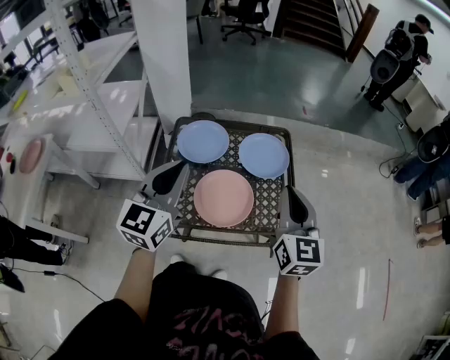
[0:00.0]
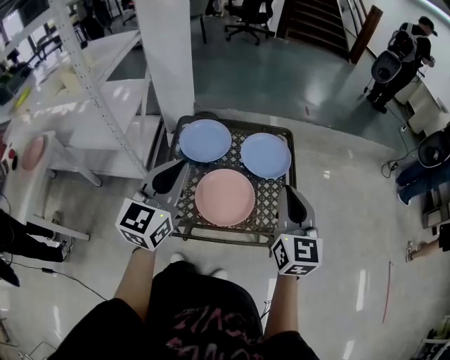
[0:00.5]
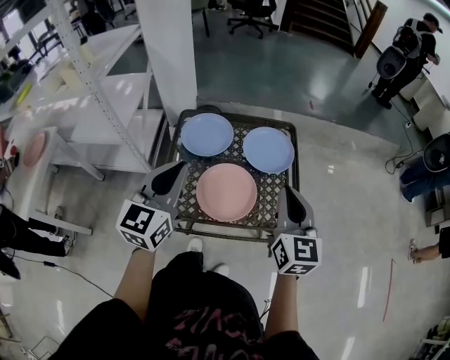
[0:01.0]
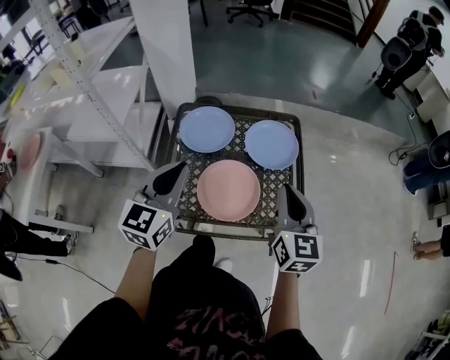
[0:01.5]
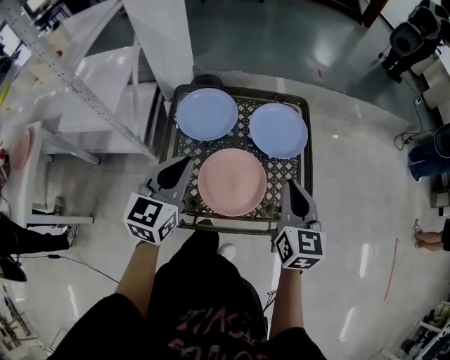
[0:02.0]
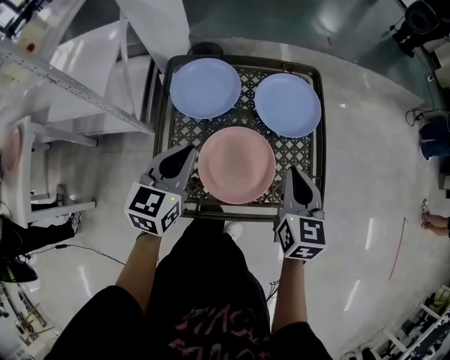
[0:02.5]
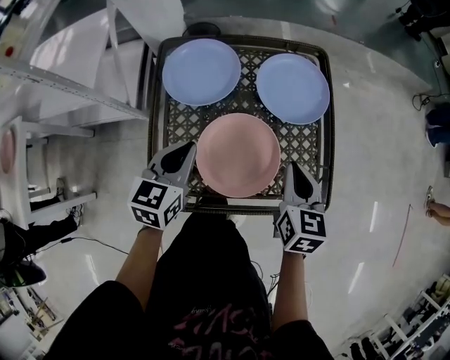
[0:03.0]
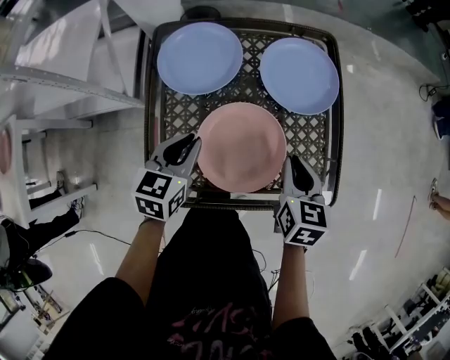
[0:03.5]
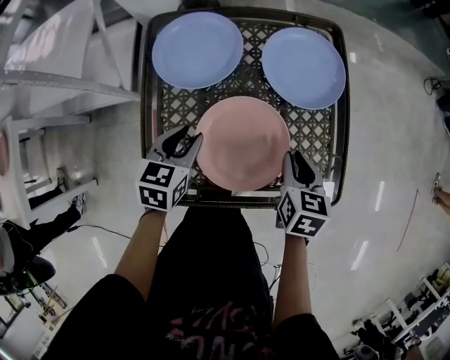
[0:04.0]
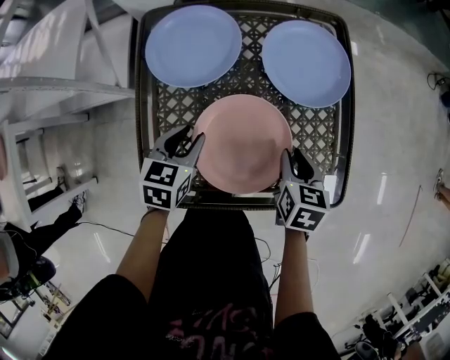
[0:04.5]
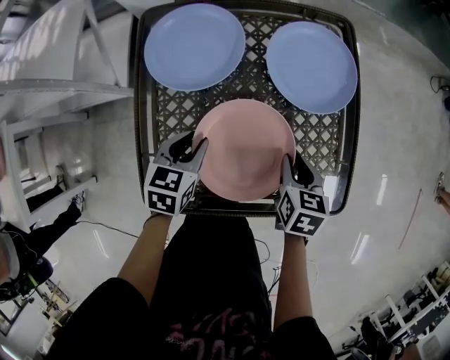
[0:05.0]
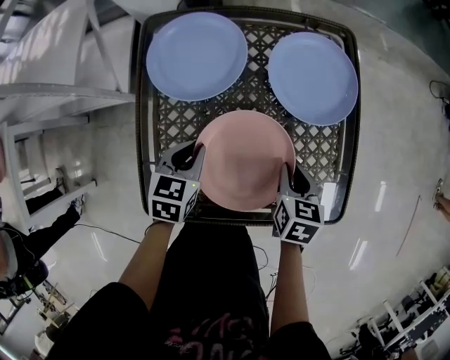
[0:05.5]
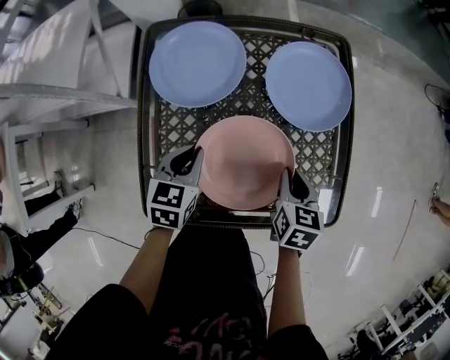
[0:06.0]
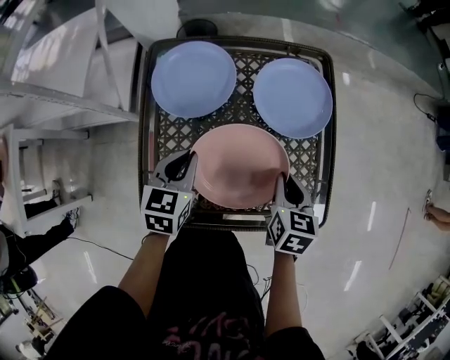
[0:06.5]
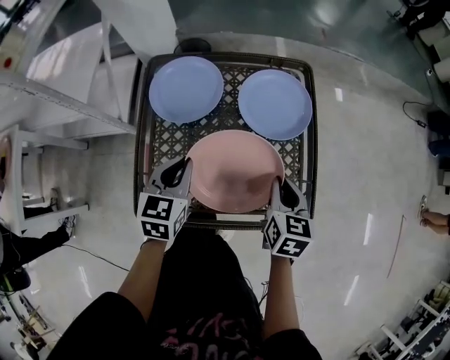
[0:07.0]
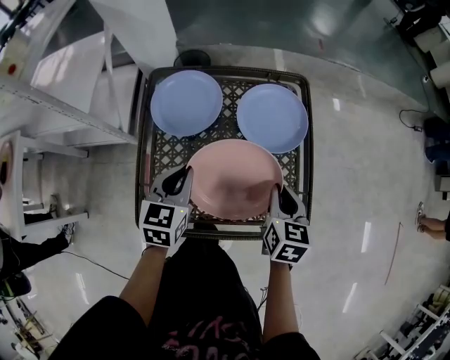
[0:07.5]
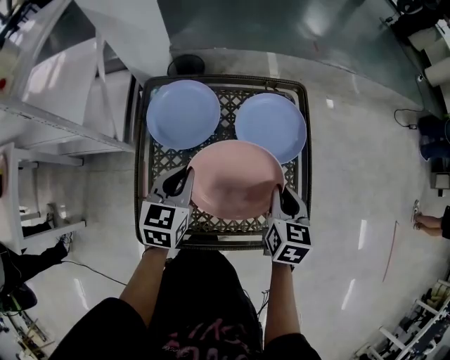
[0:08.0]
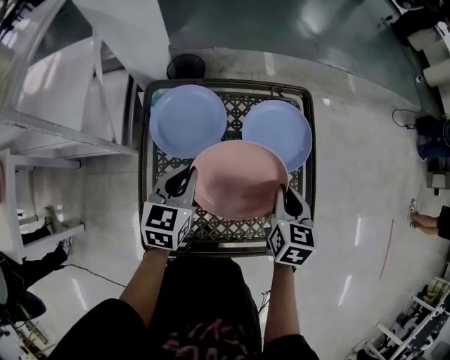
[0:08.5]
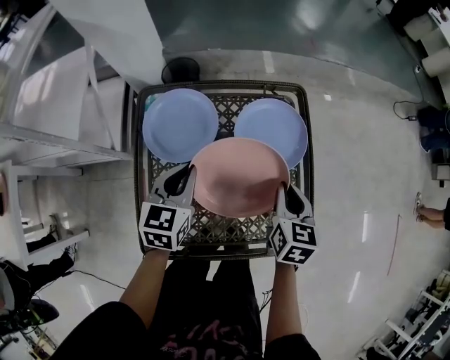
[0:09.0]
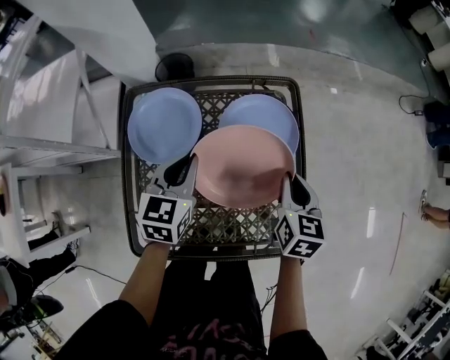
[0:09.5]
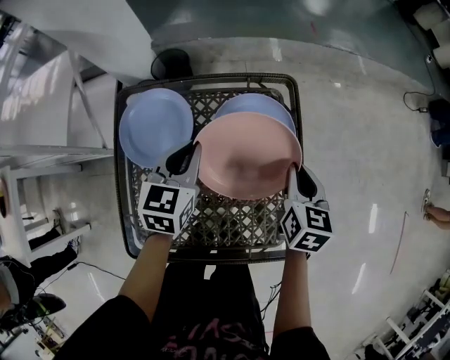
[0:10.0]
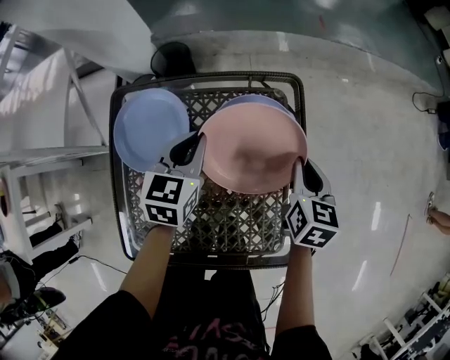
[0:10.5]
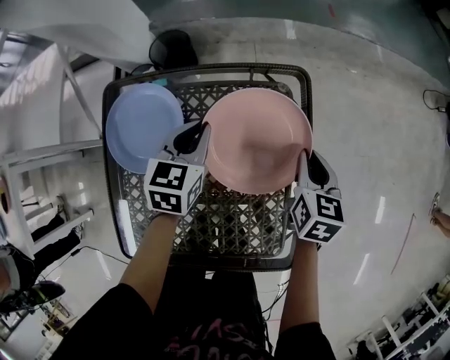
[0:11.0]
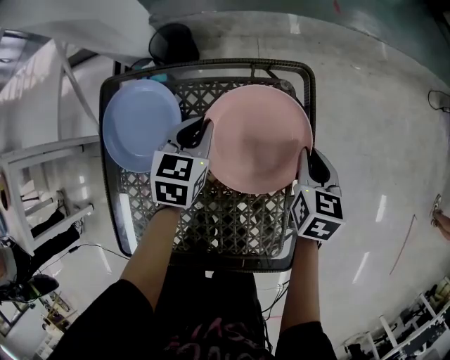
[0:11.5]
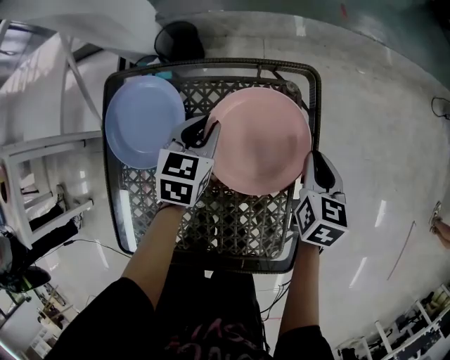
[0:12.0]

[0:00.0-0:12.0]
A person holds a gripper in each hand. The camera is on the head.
0:00.0 to 0:02.0: Both grippers move downward and forward, approximately 15 cm.
0:02.0 to 0:04.0: Both grippers travel together downward, roughly 25 cm. The left gripper rotates approximately 30 degrees, and opens, while the right gripper rotates some 30 degrees.
0:04.0 to 0:06.0: The left gripper closes its fingers.
0:06.0 to 0:08.0: Both grippers travel together upward, approximately 10 cm.
0:08.0 to 0:10.0: The two grippers go roughly 15 cm forward and to the right.
0:10.0 to 0:12.0: The right gripper goes approximately 10 cm forward and downward. Meanwhile the left gripper moves downward and forward, some 15 cm.

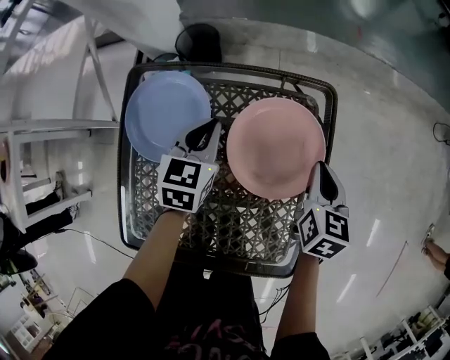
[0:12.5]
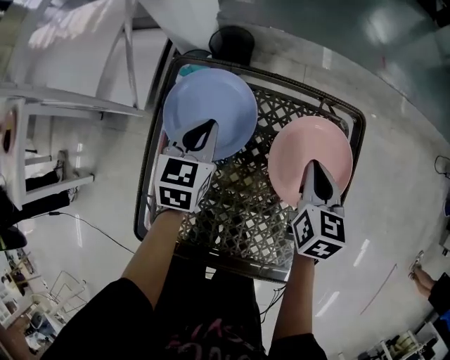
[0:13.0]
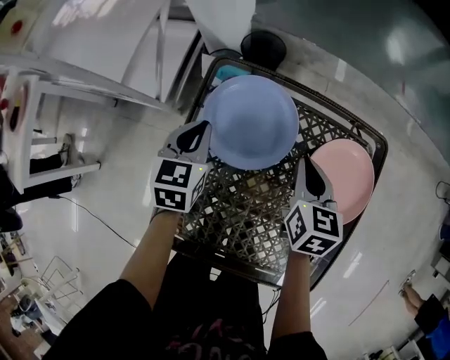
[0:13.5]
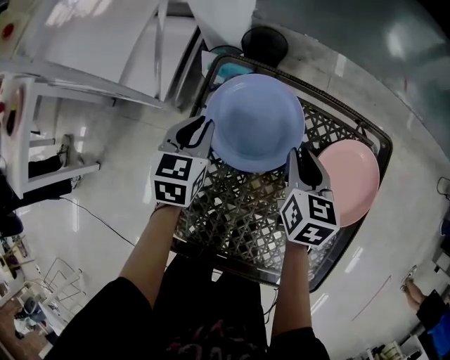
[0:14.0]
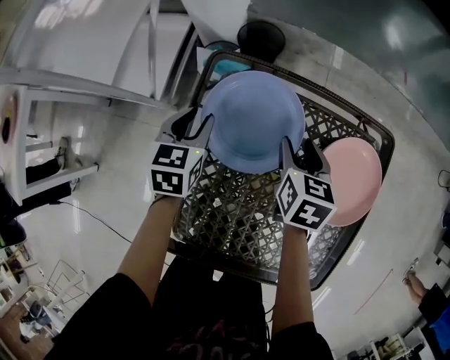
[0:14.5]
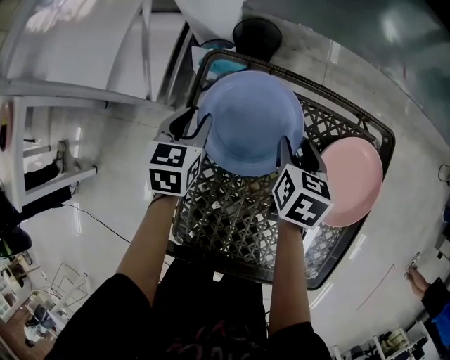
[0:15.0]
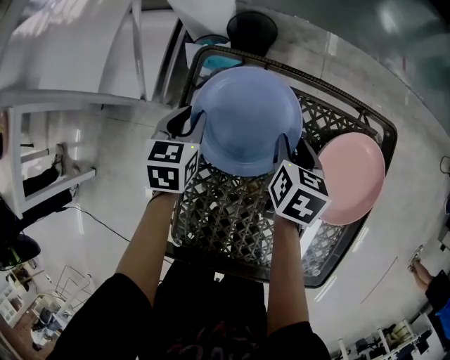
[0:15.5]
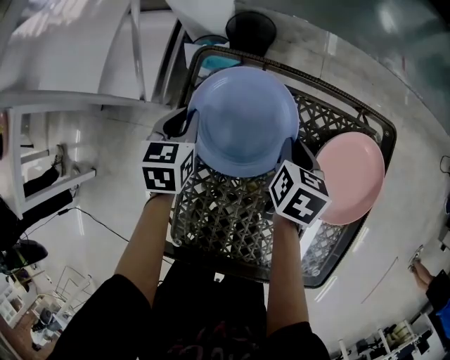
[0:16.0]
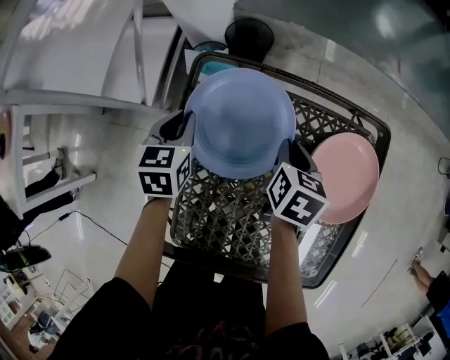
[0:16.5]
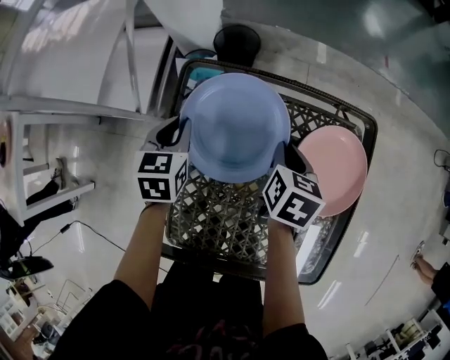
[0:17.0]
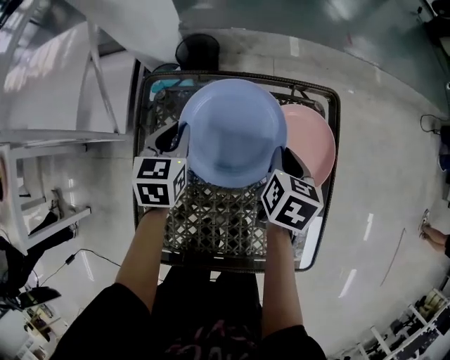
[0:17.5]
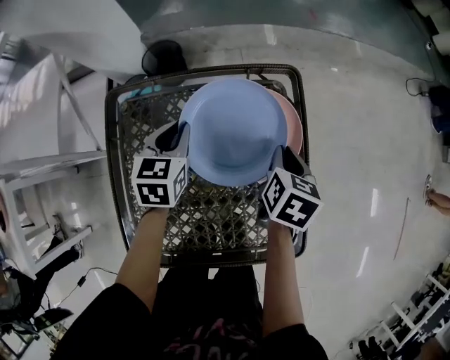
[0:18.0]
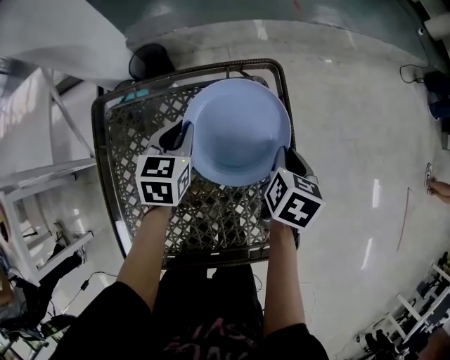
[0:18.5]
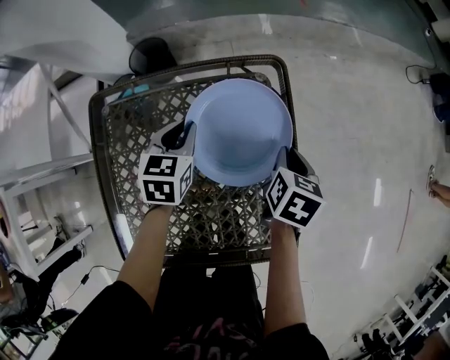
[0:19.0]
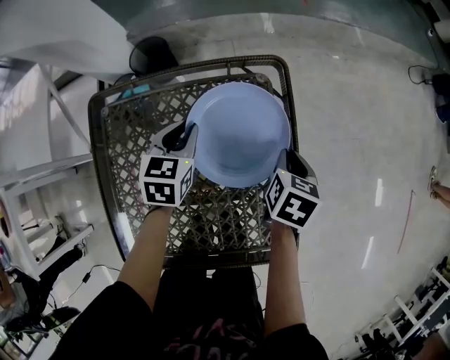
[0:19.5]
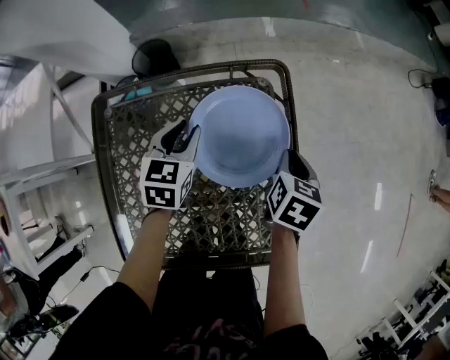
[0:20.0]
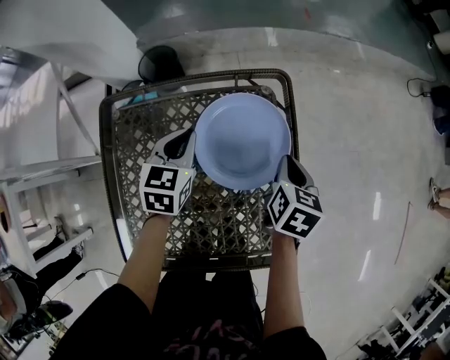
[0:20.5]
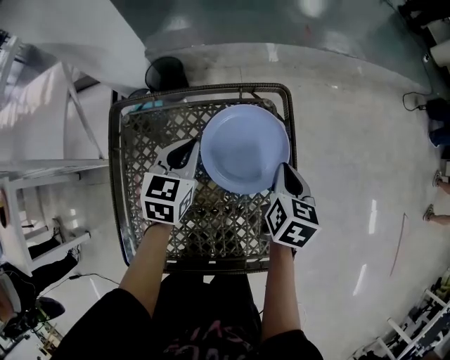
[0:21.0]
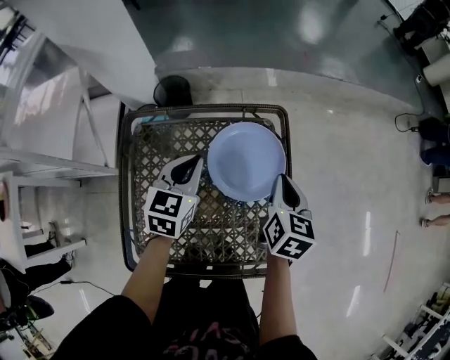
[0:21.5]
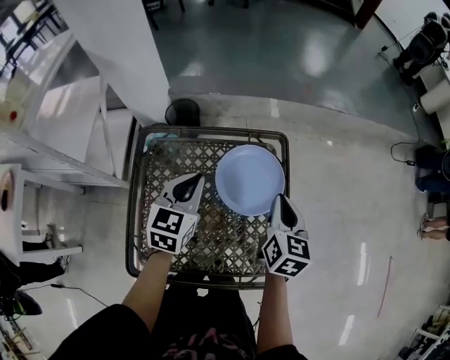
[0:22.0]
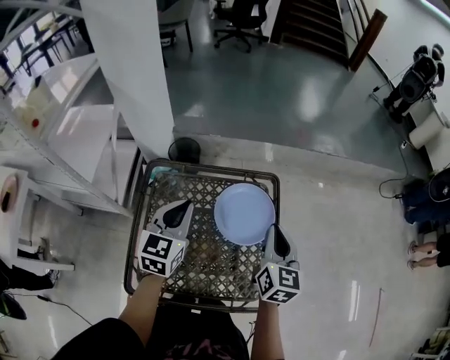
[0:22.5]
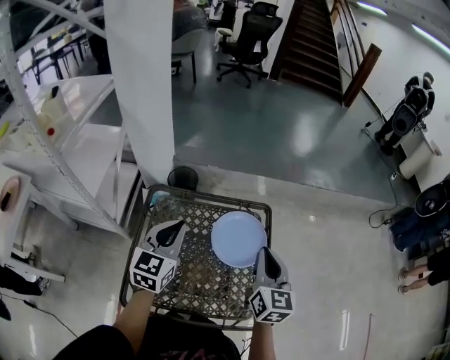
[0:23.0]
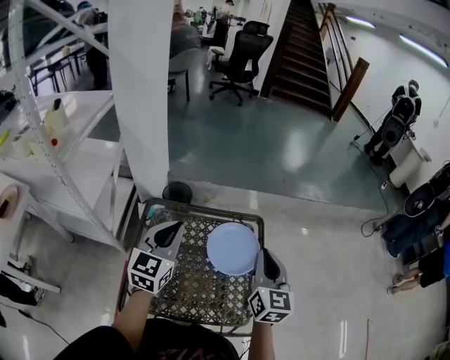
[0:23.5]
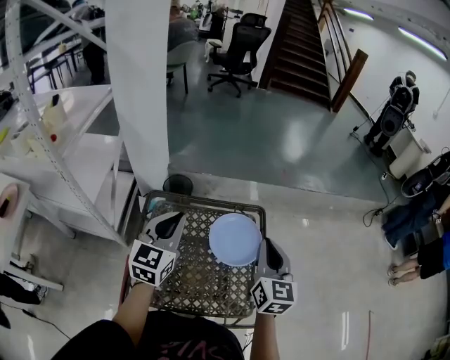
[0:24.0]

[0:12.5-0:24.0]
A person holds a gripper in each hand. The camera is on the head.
0:12.5 to 0:14.5: The two grippers go roughly 30 cm to the left. The left gripper opens. Meanwhile the right gripper opens its fingers.
0:14.5 to 0:16.5: The right gripper closes. The left gripper closes.
0:16.5 to 0:18.5: The right gripper ends up approximately 30 cm from where it was, and changes its angle by approximately 20 degrees. The left gripper ends up some 30 cm from where it was, and swivels approximately 20 degrees.
0:18.5 to 0:20.0: The grippers move only a little.
0:20.0 to 0:22.0: The right gripper heads upward, covering roughly 15 cm, and changes its angle by about 30 degrees. The left gripper moves upward and backward, approximately 20 cm, and closes.
0:22.0 to 0:24.0: The grippers both shift upward by some 20 cm. The right gripper turns by roughly 20 degrees.

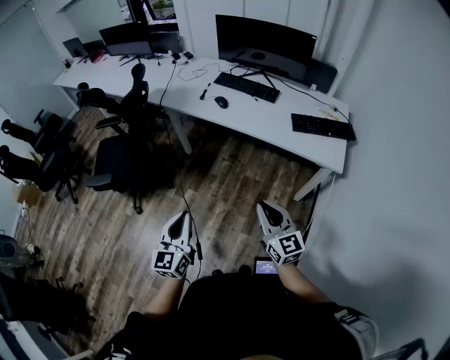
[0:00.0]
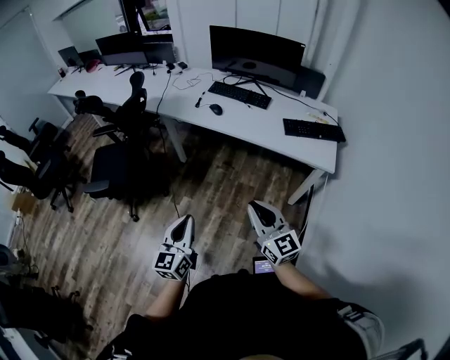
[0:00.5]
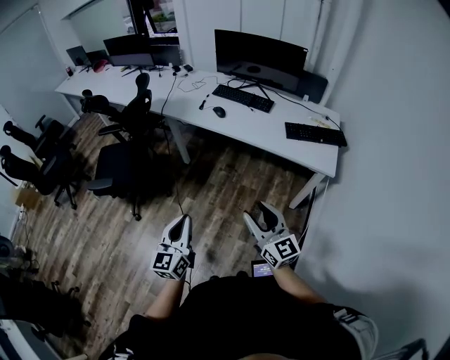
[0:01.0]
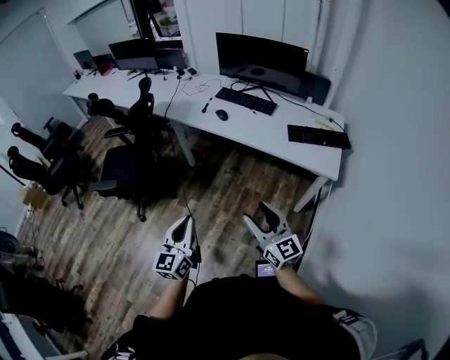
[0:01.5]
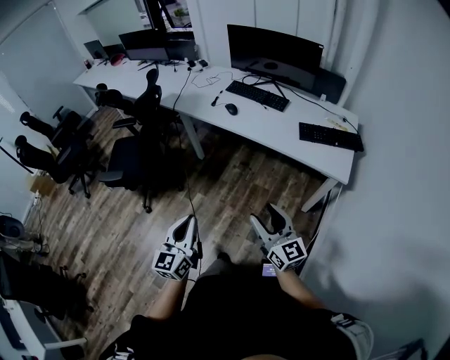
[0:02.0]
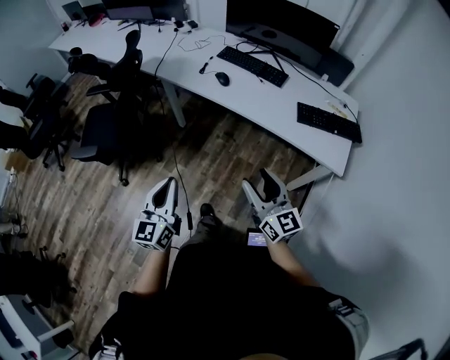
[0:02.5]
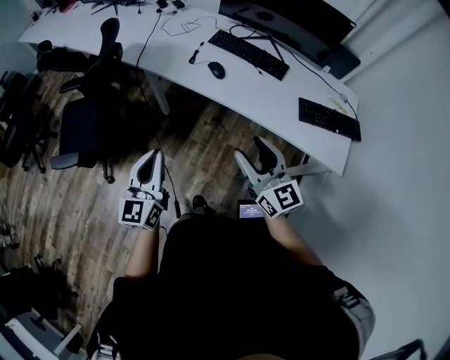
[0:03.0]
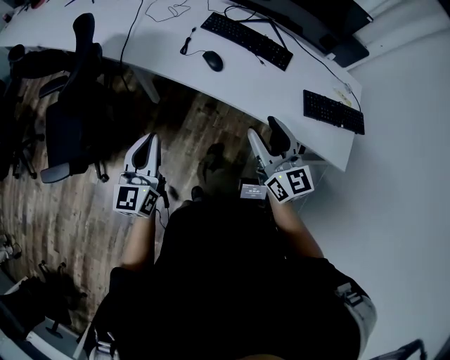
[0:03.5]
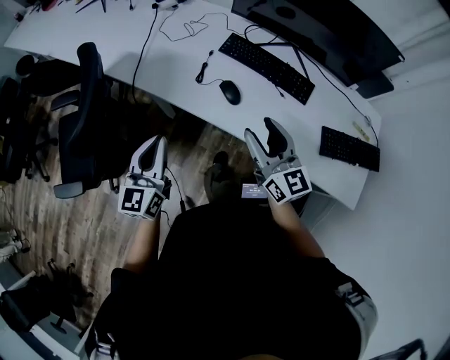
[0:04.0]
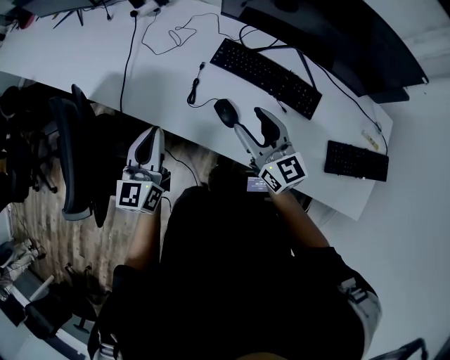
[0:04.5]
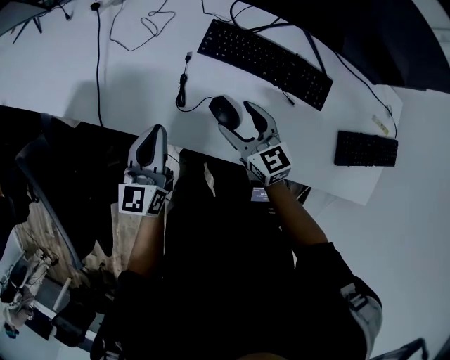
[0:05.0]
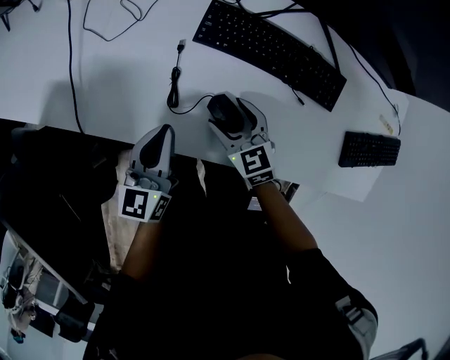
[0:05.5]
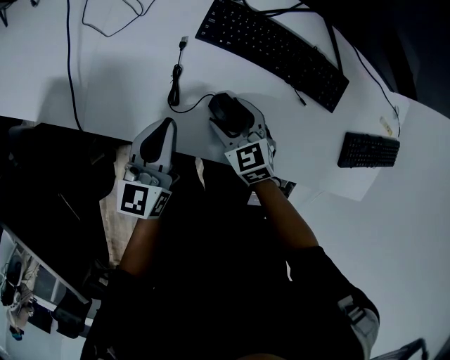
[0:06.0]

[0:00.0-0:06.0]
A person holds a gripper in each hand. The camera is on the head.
0:00.0 to 0:02.0: The left gripper shifts by roughly 5 cm. The right gripper opens up.
0:02.0 to 0:04.0: The two grippers travel together, forward, some 60 cm.
0:04.0 to 0:06.0: The right gripper is displaced downward and forward by approximately 35 cm, and tilts its fingers some 40 degrees downward. The left gripper heads forward and downward, covering roughly 30 cm, and rotates approximately 20 degrees.
